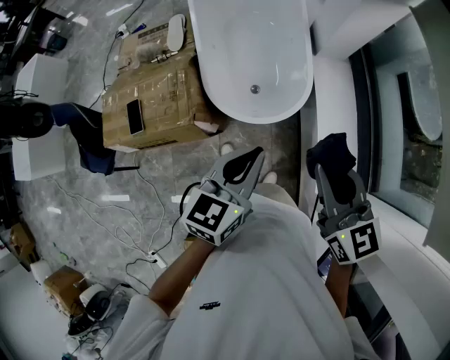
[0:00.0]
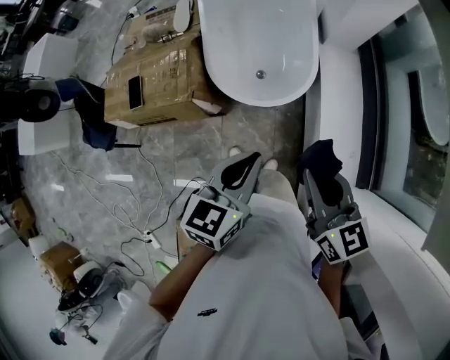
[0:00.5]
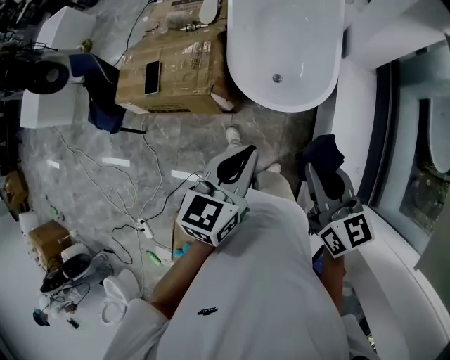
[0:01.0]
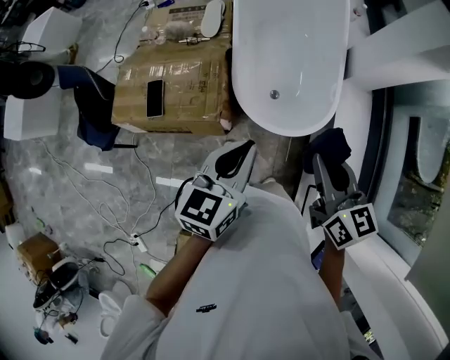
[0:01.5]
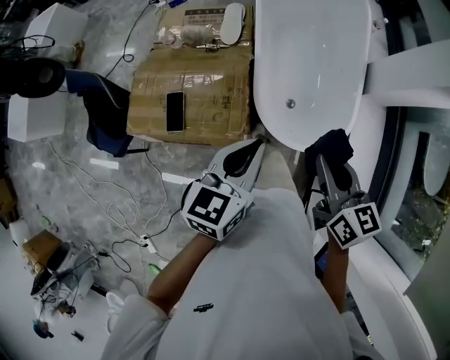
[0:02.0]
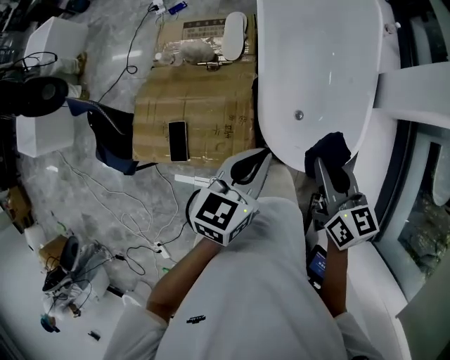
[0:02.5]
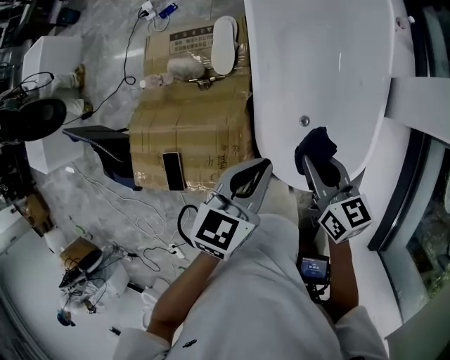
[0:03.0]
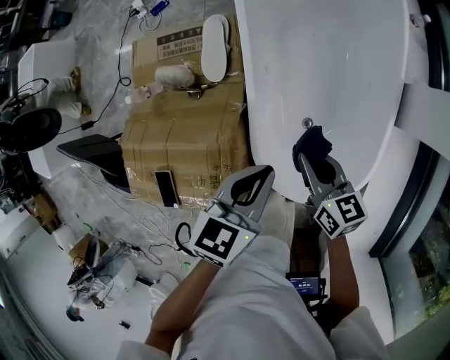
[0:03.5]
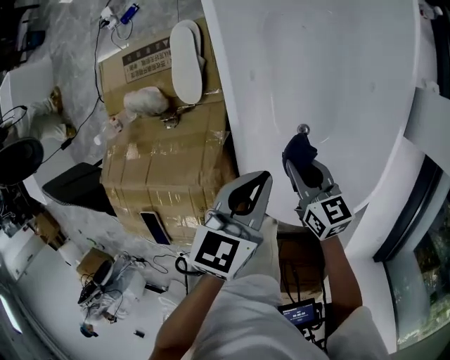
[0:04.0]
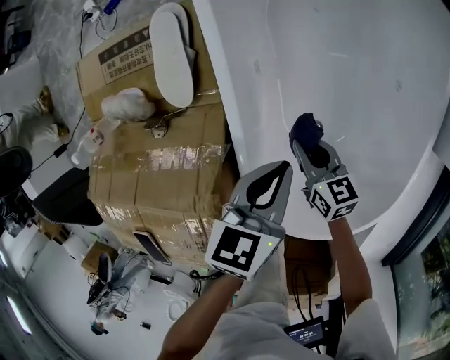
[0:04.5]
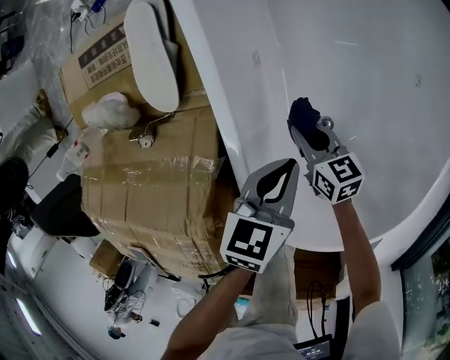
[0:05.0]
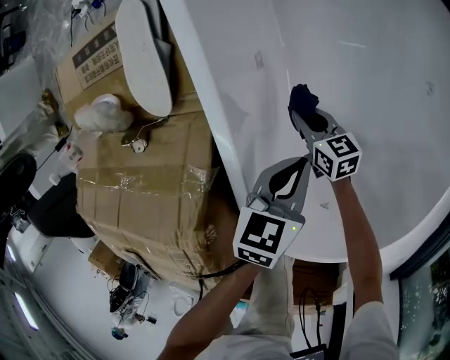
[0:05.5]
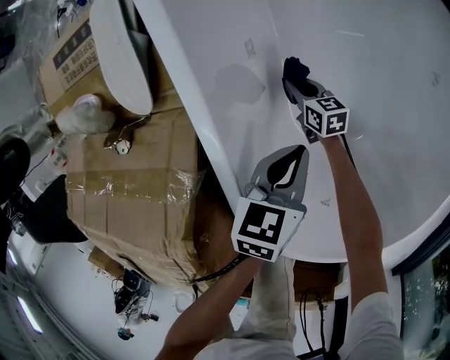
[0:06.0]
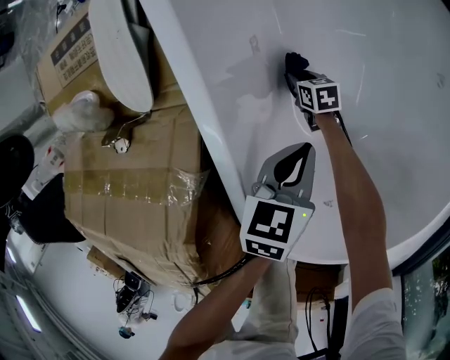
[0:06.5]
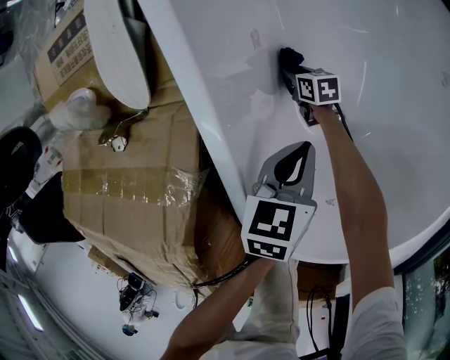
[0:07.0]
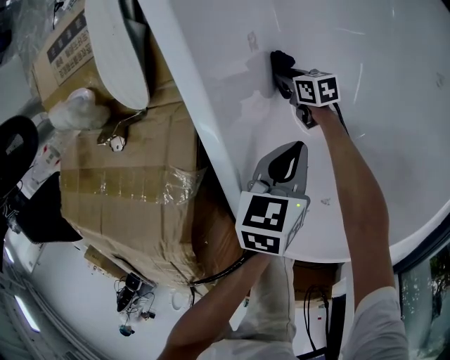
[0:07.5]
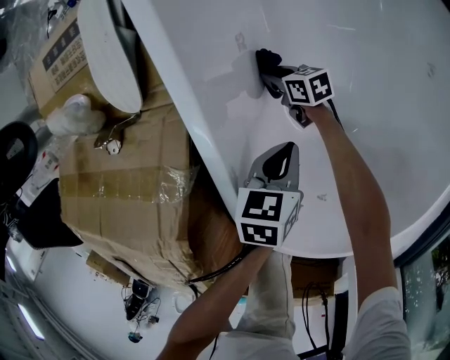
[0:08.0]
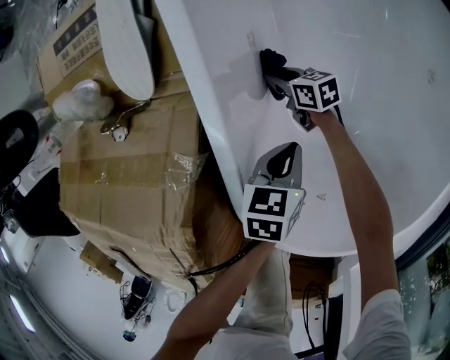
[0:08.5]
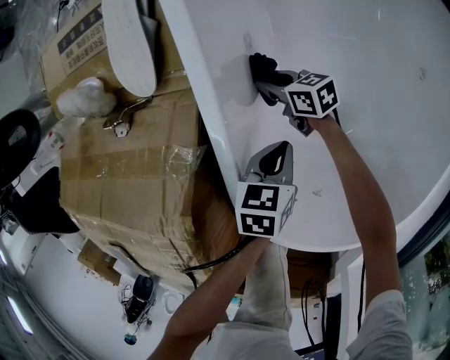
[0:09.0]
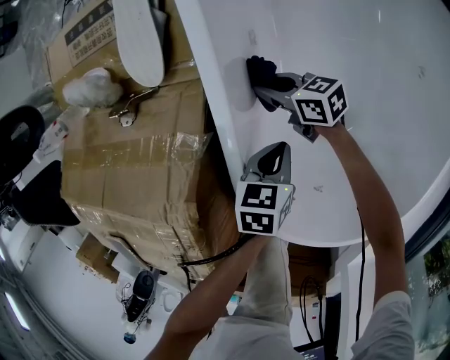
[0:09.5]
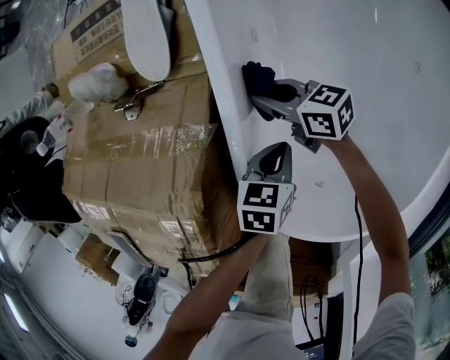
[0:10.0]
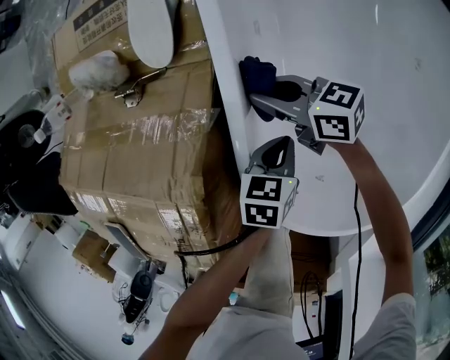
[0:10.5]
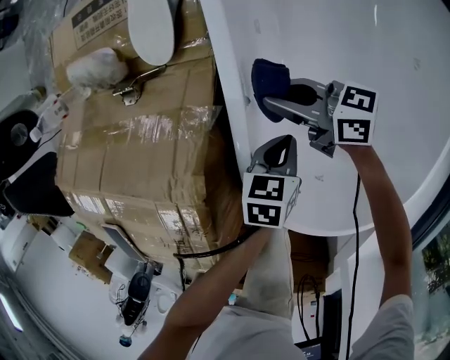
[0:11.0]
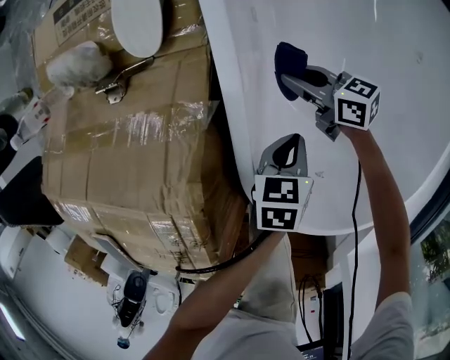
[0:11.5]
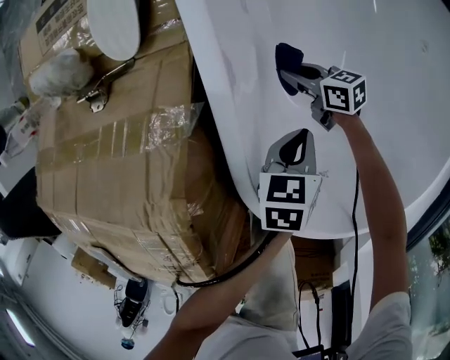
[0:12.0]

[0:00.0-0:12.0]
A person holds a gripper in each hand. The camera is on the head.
0:00.0 to 0:02.0: Both grippers move to the left and forward, approximately 25 cm.
0:02.0 to 0:04.0: The left gripper travels forward and downward by approximately 50 cm, and turns by approximately 20 degrees. The right gripper travels downward and forward by roughly 60 cm.
0:04.0 to 0:06.0: The two grippers go about 40 cm downward.
0:08.0 to 0:10.0: The left gripper moves about 5 cm; the right gripper goes about 25 cm upward, and turns by some 20 degrees.
0:10.0 to 0:12.0: The right gripper is displaced downward by roughly 15 cm. The left gripper changes place by about 5 cm.

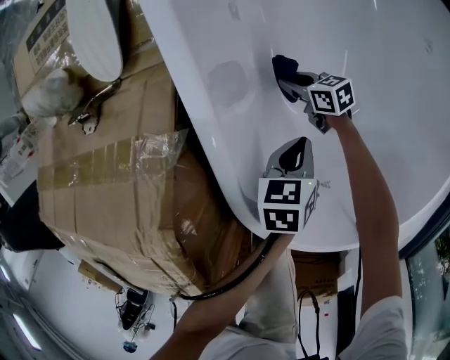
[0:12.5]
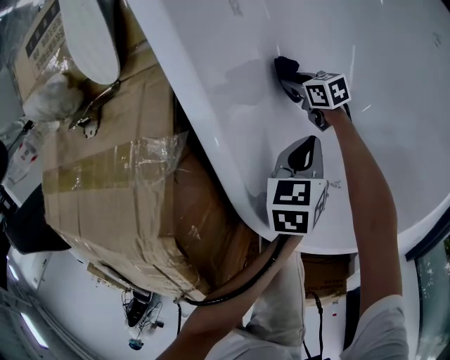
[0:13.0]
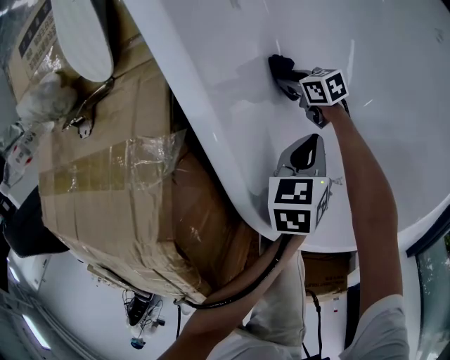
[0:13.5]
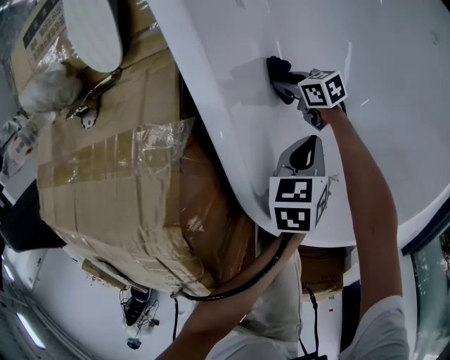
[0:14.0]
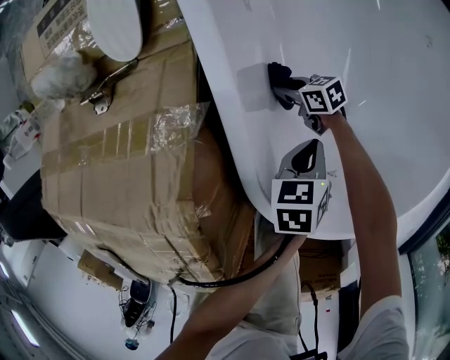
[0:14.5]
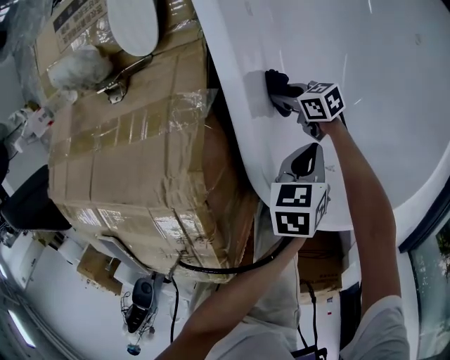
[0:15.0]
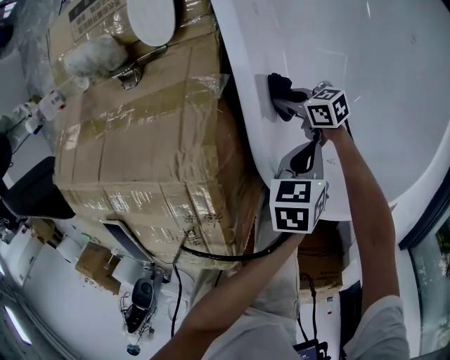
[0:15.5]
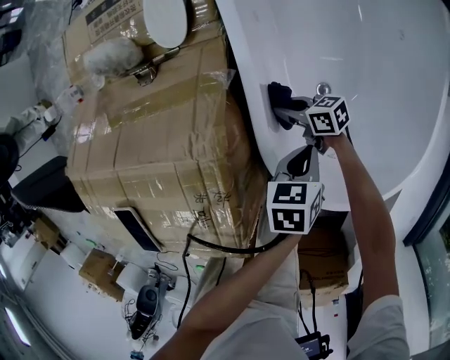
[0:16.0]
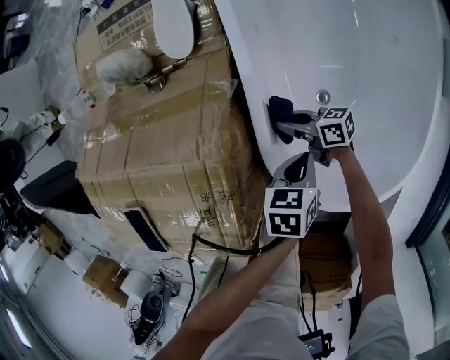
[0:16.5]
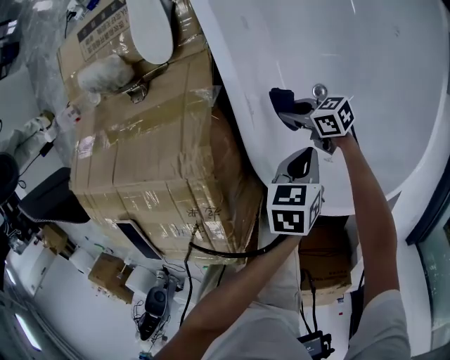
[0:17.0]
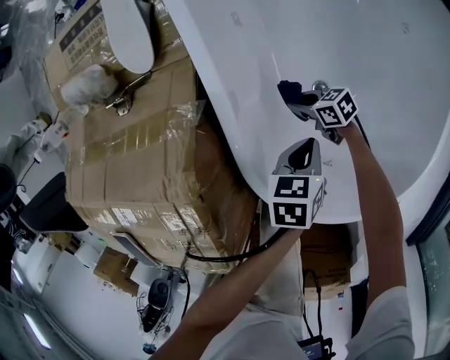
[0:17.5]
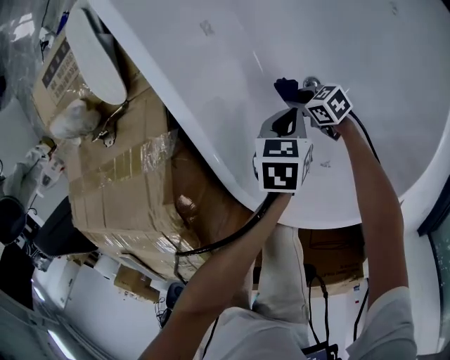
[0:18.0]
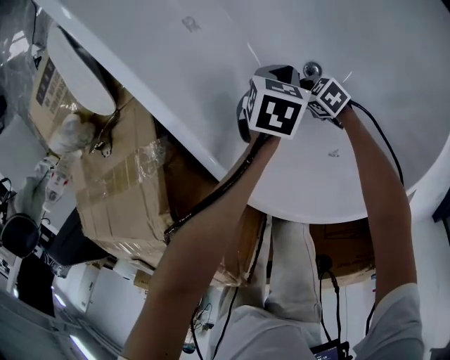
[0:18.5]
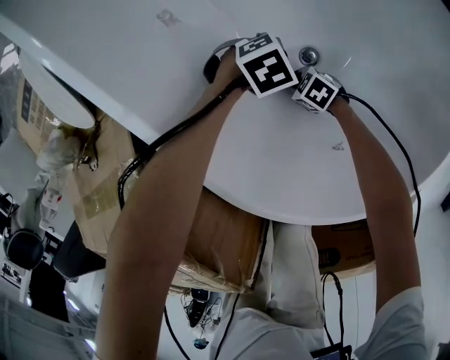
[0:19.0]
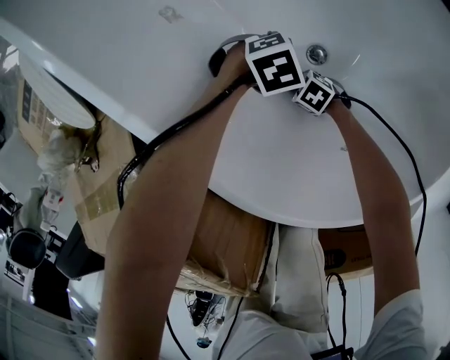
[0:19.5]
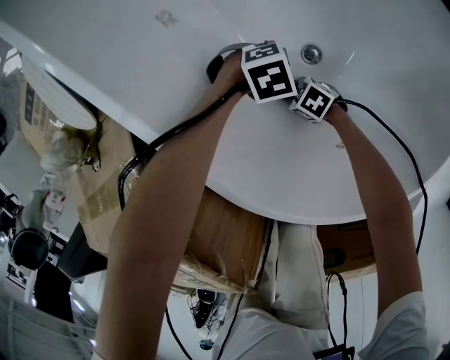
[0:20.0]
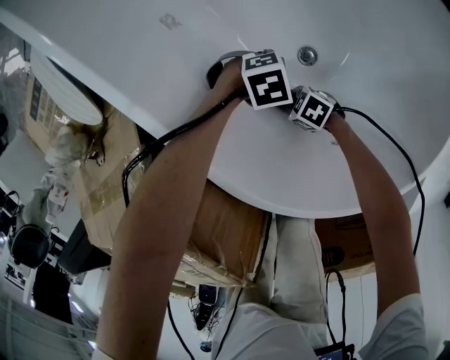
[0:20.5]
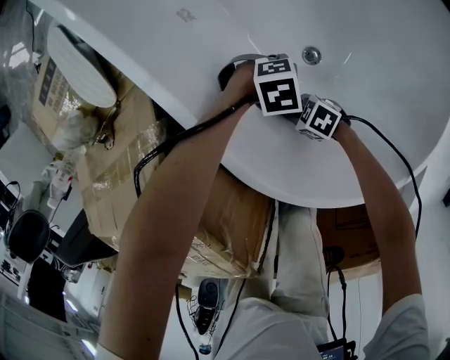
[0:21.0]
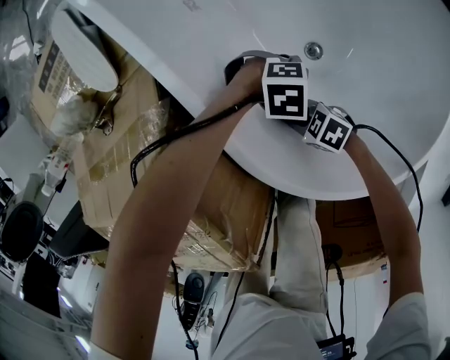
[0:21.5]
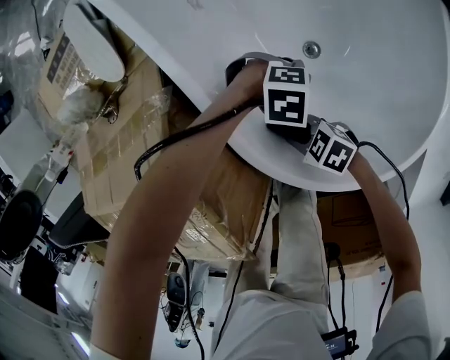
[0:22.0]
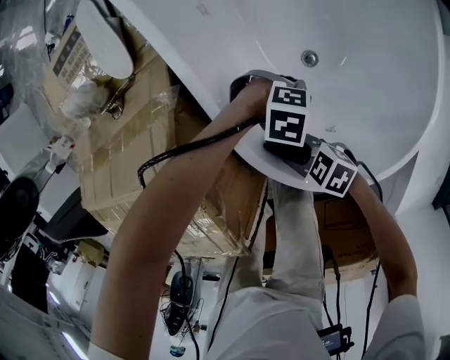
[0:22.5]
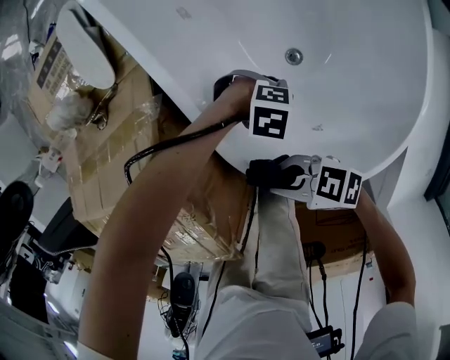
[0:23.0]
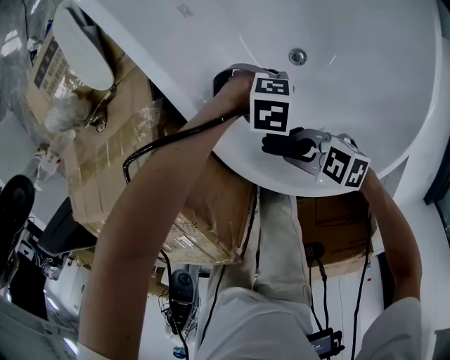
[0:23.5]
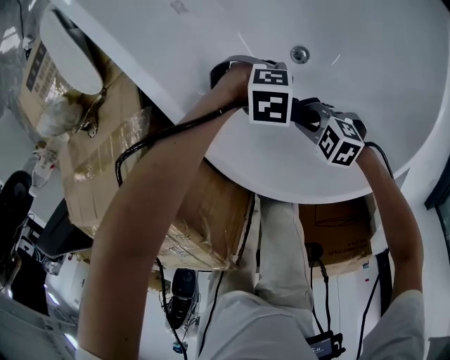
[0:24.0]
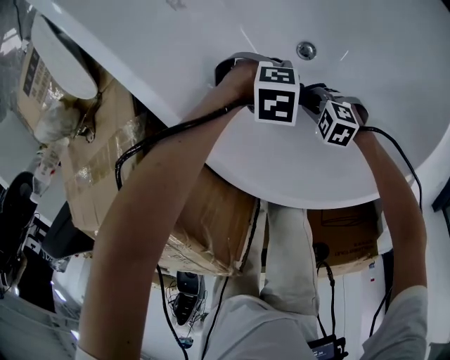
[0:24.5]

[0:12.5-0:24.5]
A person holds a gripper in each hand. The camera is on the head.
0:12.5 to 0:14.5: The right gripper shifts by approximately 5 cm.
0:14.5 to 0:16.5: The left gripper shifts about 15 cm upward. Meanwhile the right gripper moves upward, approximately 20 cm.
0:16.5 to 0:18.5: Both grippers travel together downward, approximately 20 cm. The left gripper swivels approximately 40 degrees, while the right gripper tilts its fingers approximately 30 degrees downward.
0:18.5 to 0:20.5: The right gripper ends up roughly 10 cm from where it was, while the left gripper moves roughly 10 cm, and rotates around the line of its fingers by roughly 60 degrees, clockwise from behind.
0:20.5 to 0:22.5: The right gripper goes some 25 cm upward. The left gripper heads upward and forward, covering roughly 15 cm.
0:22.5 to 0:24.5: The left gripper travels downward by roughly 10 cm; the right gripper shifts about 25 cm downward, to the left and backward, and rotates about 20 degrees.

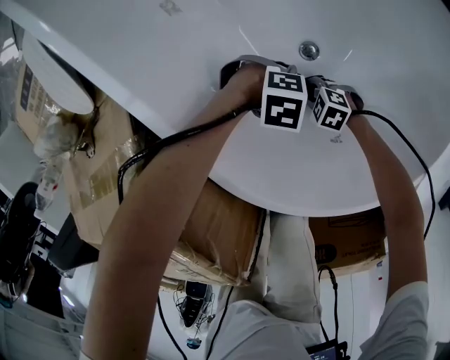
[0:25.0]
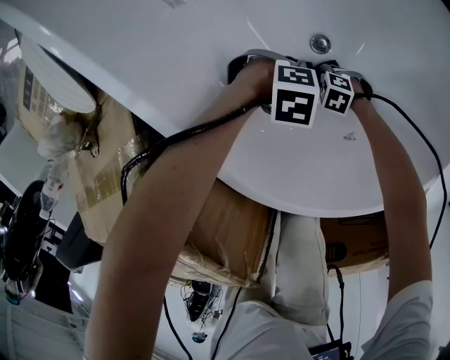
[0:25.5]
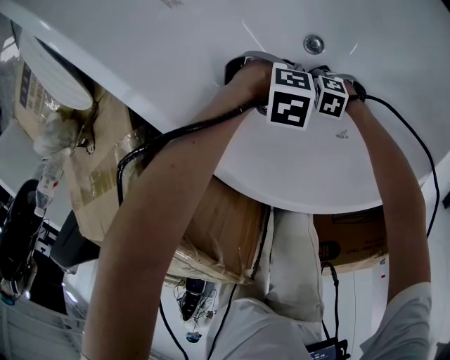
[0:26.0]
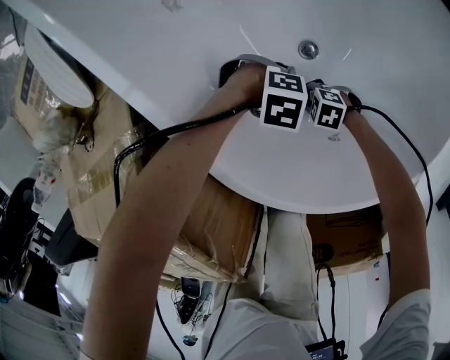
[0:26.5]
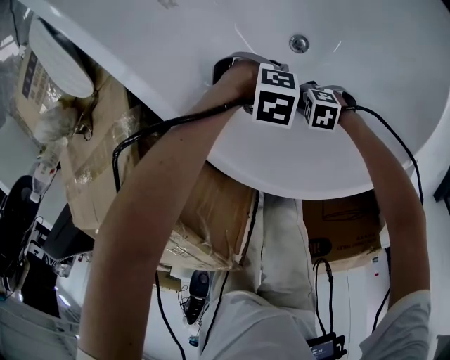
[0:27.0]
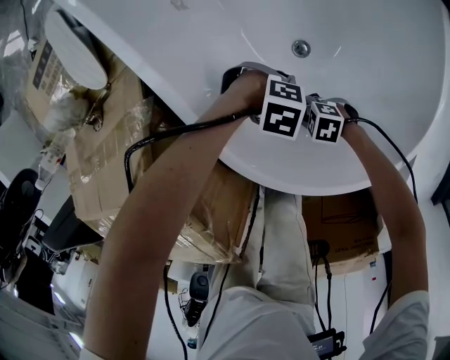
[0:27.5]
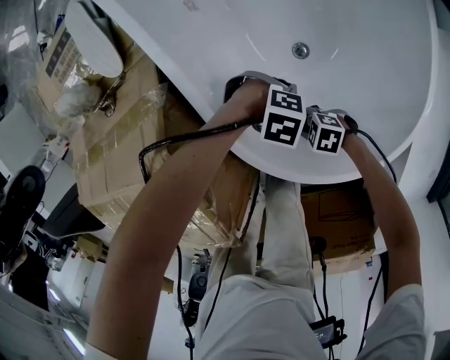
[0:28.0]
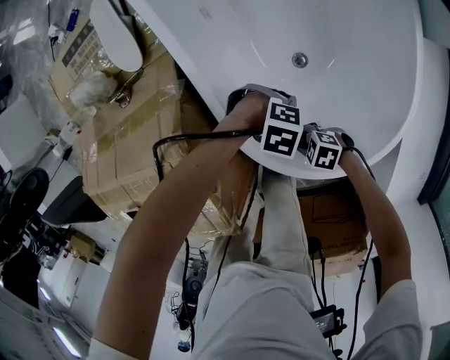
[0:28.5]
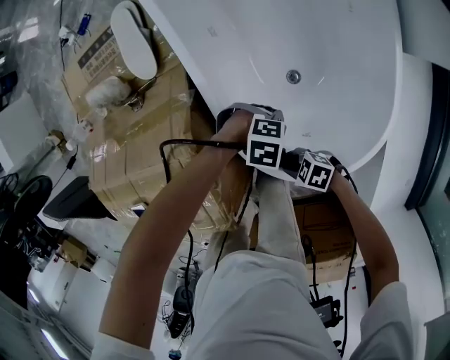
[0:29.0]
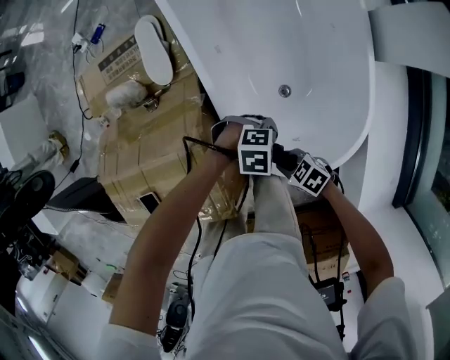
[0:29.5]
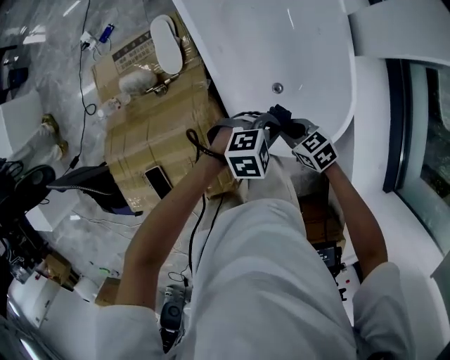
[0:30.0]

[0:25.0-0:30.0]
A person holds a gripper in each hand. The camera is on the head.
0:25.0 to 0:27.5: The left gripper goes roughly 5 cm upward. Meanwhile the right gripper goes about 10 cm upward and forward.
0:27.5 to 0:30.0: The two grippers go about 40 cm upward. The left gripper rotates about 40 degrees; the right gripper rotates roughly 40 degrees.
